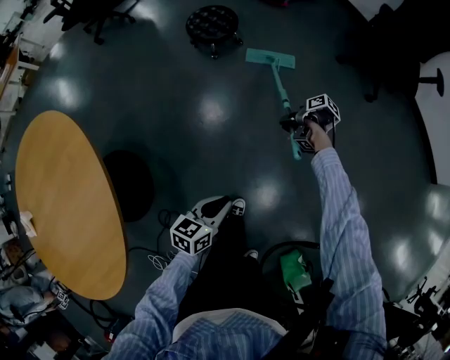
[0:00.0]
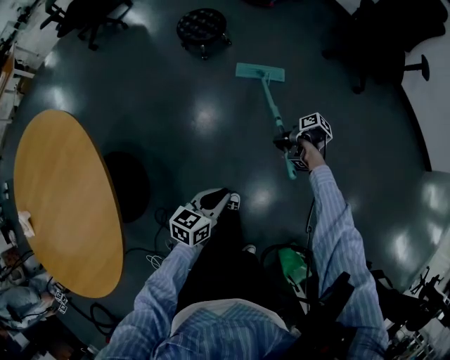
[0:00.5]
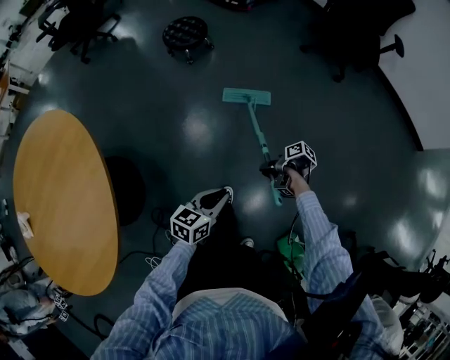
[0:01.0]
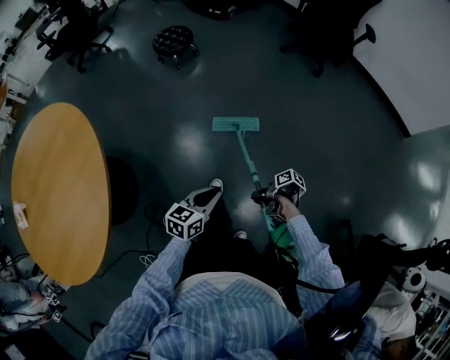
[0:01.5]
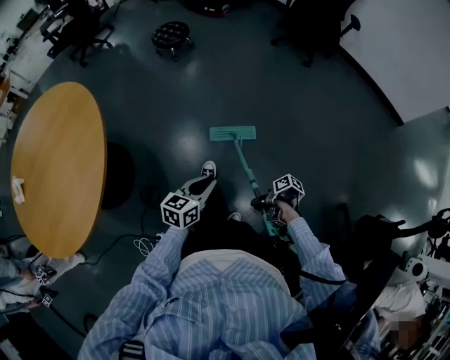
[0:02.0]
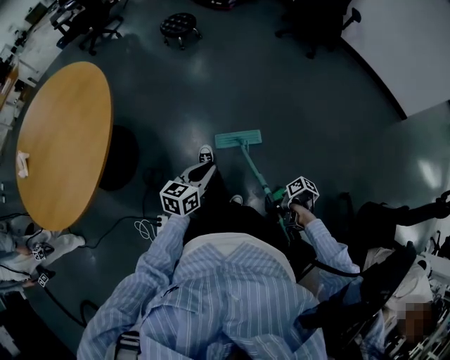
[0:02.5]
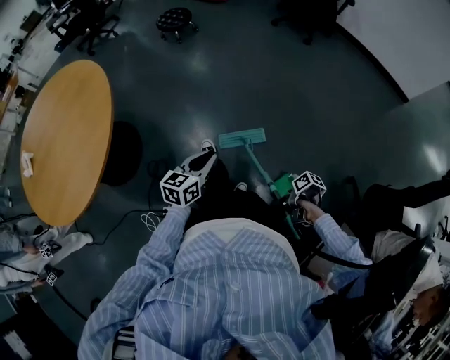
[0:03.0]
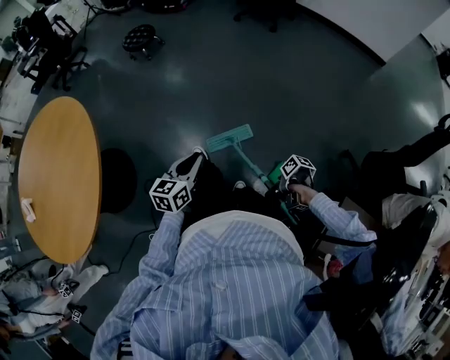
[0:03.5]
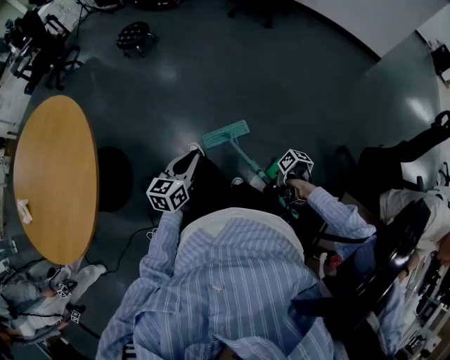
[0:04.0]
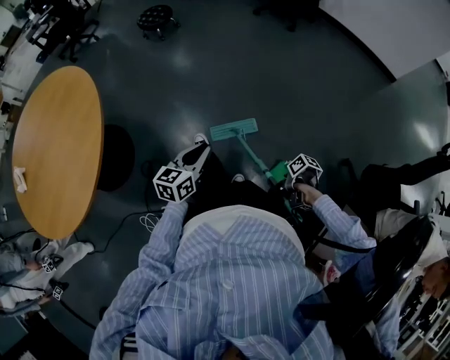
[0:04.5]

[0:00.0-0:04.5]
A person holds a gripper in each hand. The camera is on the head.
0:00.0 to 0:02.0: The left gripper ends up some 40 cm from where it was.
0:02.0 to 0:04.5: The left gripper shifts by approximately 10 cm.

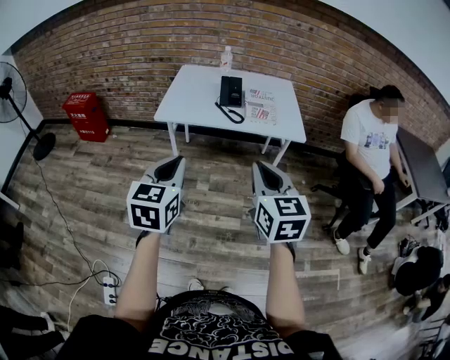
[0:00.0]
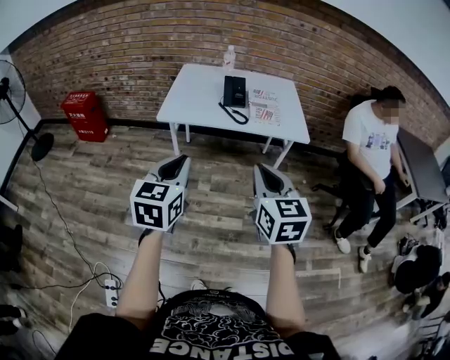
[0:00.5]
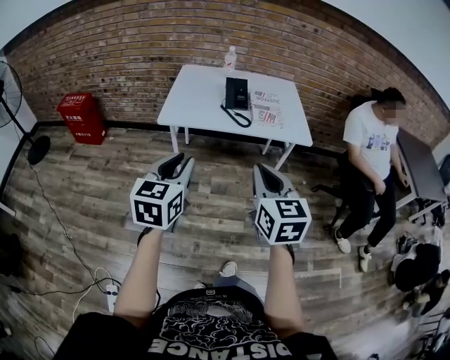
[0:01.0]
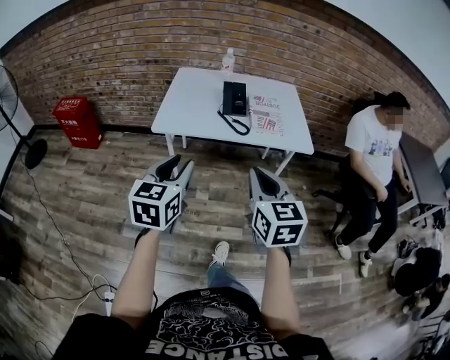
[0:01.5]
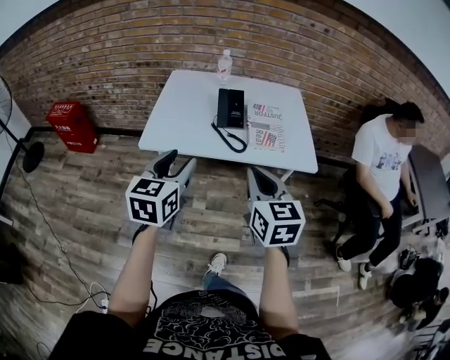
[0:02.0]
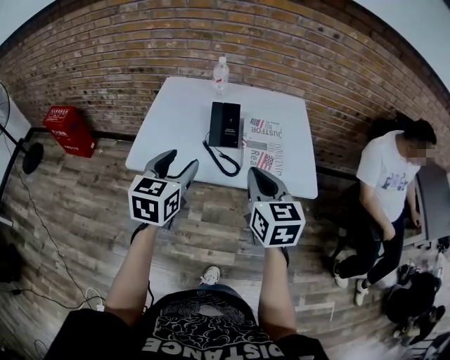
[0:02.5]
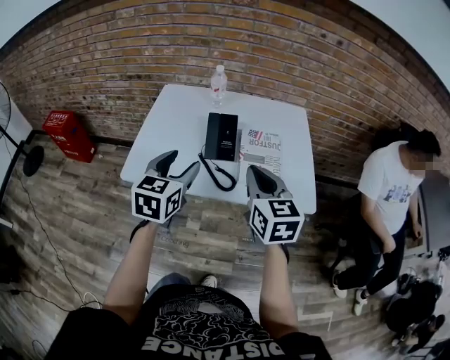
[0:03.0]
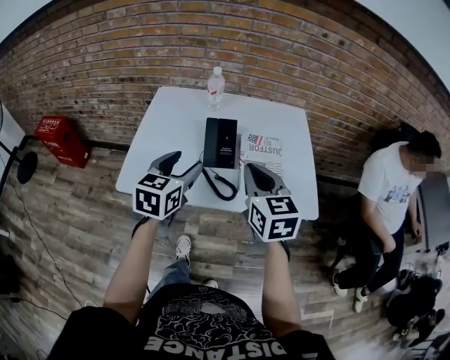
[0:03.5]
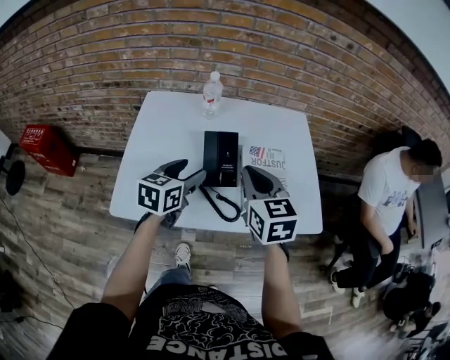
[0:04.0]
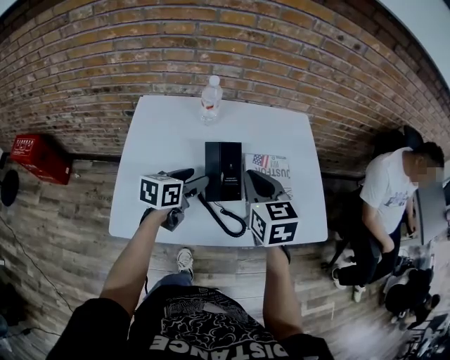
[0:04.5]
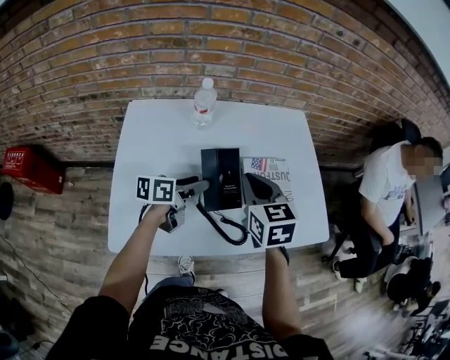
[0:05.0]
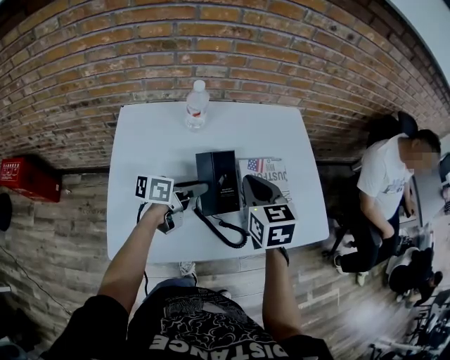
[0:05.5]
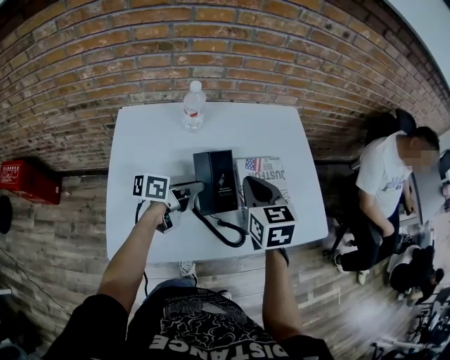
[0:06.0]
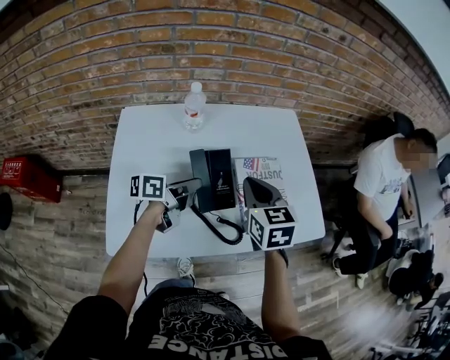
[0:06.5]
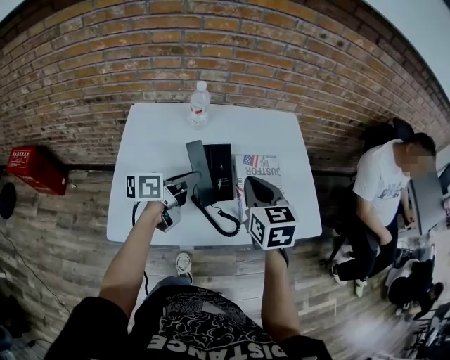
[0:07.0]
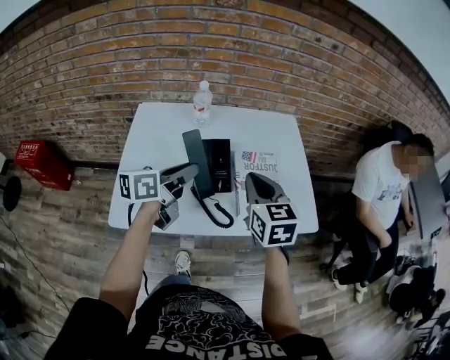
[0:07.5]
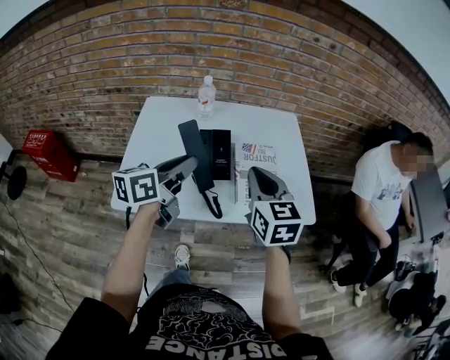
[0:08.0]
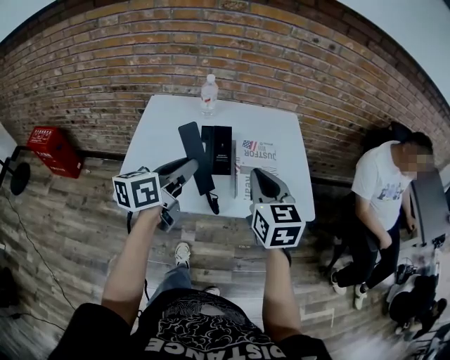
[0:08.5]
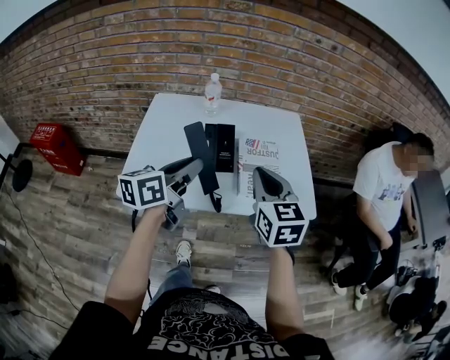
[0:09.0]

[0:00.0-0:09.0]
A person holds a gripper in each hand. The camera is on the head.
0:00.0 to 0:02.0: Both grippers travel together forward, some 25 cm. The left gripper opens its fingers.
0:02.0 to 0:04.5: The left gripper moves forward and downward, approximately 40 cm, and turns by some 40 degrees, while the right gripper is displaced forward by approximately 35 cm.
0:04.5 to 0:07.0: The left gripper moves upward, about 5 cm, changes its angle by about 30 degrees, and closes its fingers.
0:07.0 to 0:09.0: The right gripper shifts roughly 15 cm backward, upward and to the right. The left gripper travels backward and upward by some 20 cm, and turns by about 30 degrees.

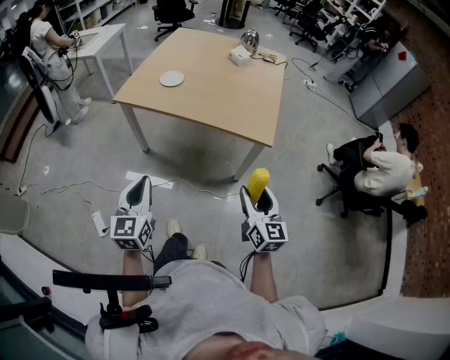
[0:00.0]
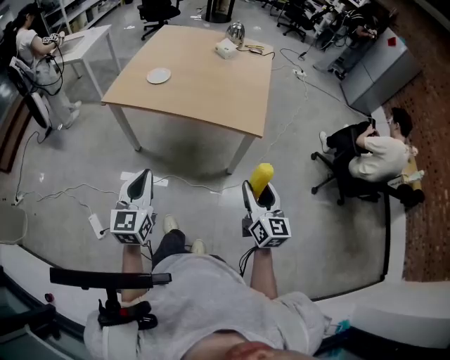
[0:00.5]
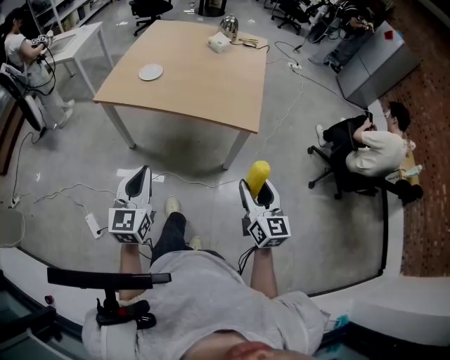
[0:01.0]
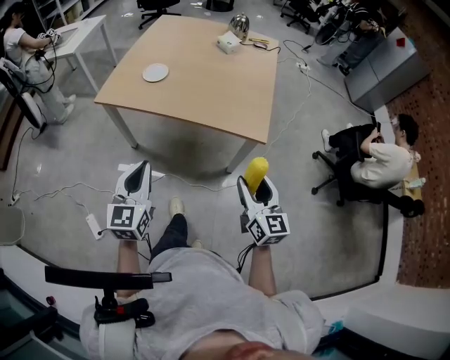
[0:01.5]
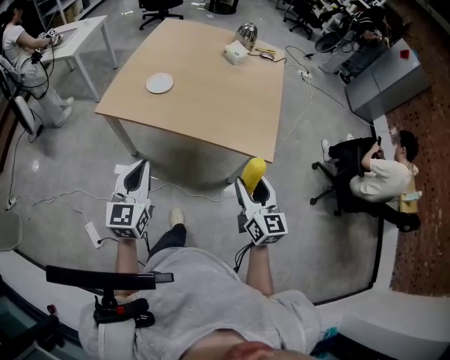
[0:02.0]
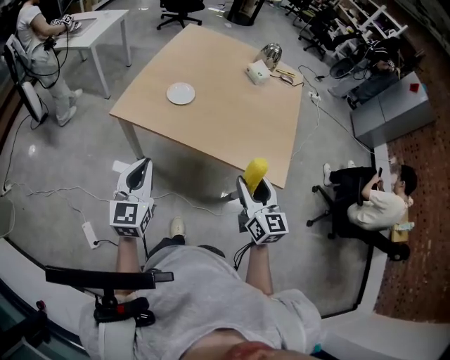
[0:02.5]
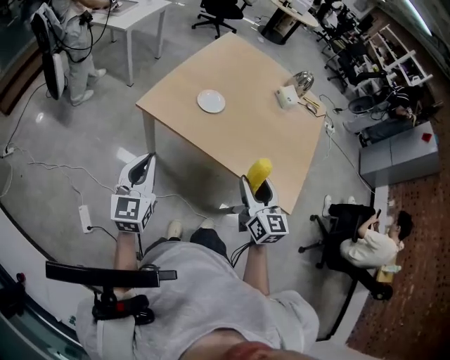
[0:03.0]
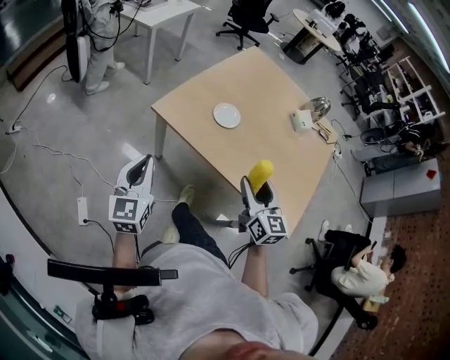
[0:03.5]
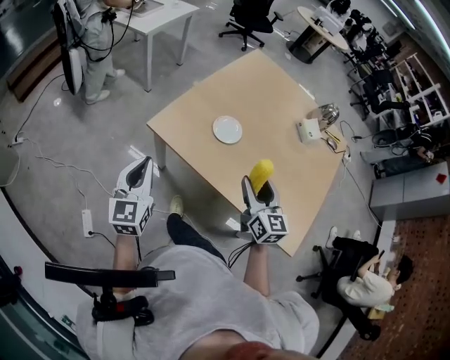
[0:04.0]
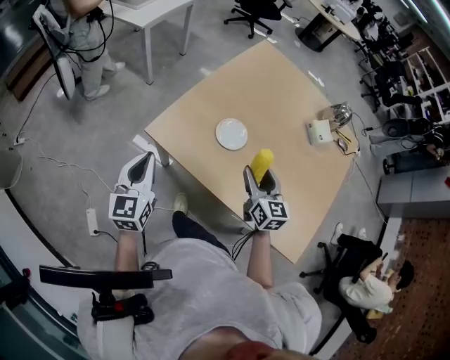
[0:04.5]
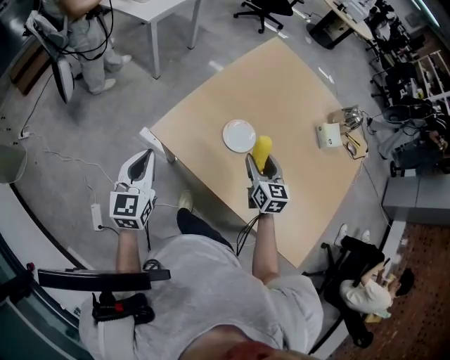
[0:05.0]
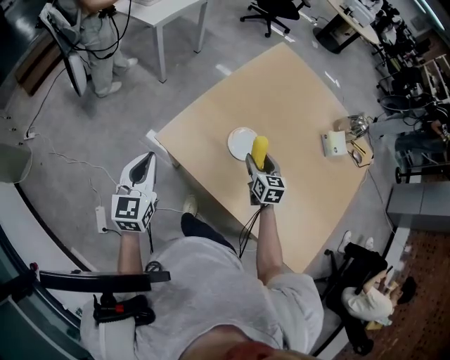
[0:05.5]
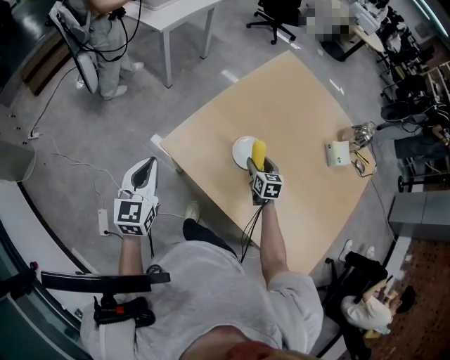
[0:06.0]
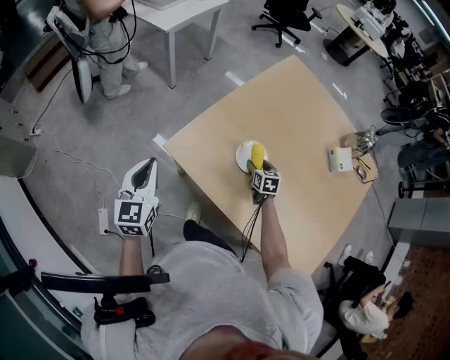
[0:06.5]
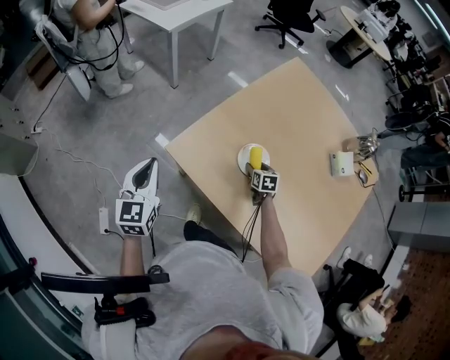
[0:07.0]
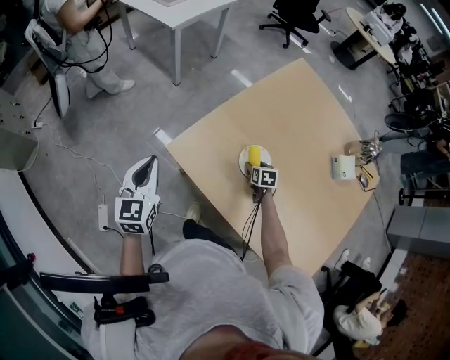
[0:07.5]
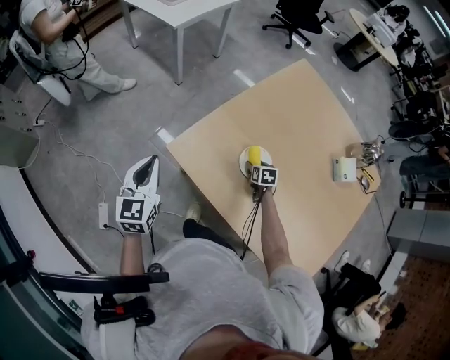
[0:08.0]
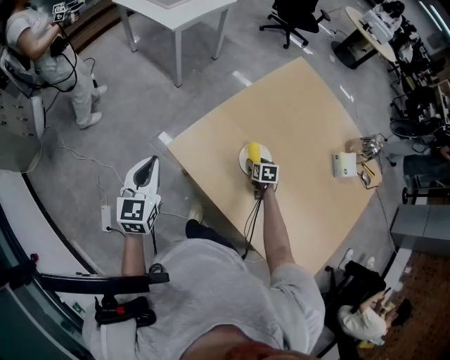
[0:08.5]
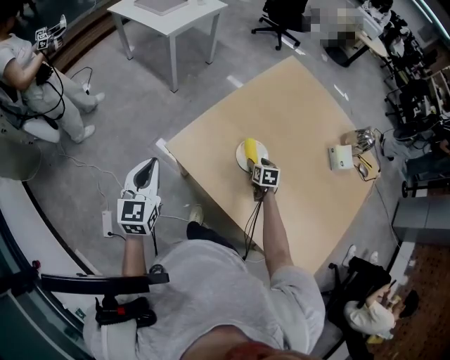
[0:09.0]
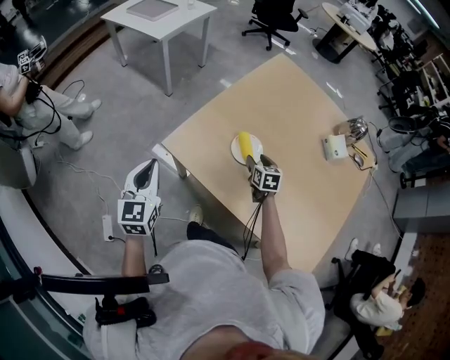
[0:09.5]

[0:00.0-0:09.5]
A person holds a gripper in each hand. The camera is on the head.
0:00.0 to 0:02.0: The grippers both shift forward by roughly 20 cm.
0:02.0 to 0:04.0: The grippers both shift forward and to the left by approximately 35 cm. The right gripper swivels about 20 degrees, while the left gripper rotates some 20 degrees.
0:04.0 to 0:05.5: The right gripper goes approximately 30 cm forward and downward, and changes its angle by approximately 20 degrees. The left gripper is displaced forward by roughly 15 cm.
0:05.5 to 0:07.5: The right gripper travels downward and forward by roughly 15 cm, and rotates some 30 degrees.
0:07.5 to 0:09.5: The right gripper moves upward and backward, roughly 15 cm, while the left gripper shifts approximately 5 cm backward.

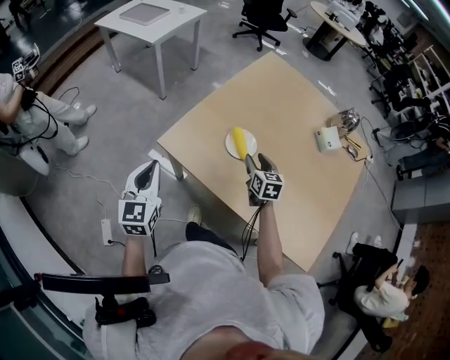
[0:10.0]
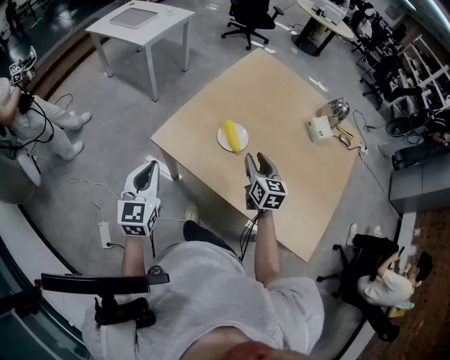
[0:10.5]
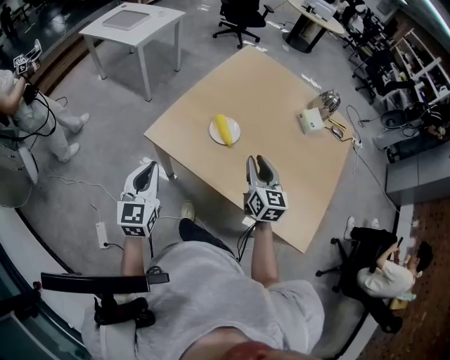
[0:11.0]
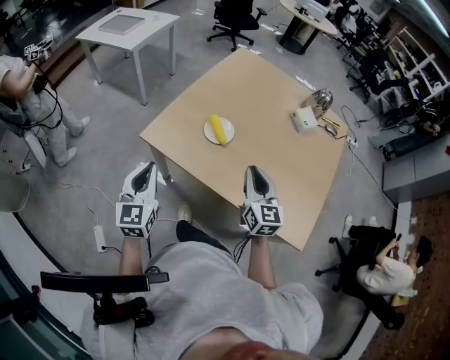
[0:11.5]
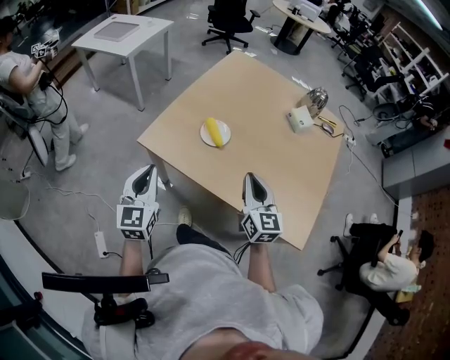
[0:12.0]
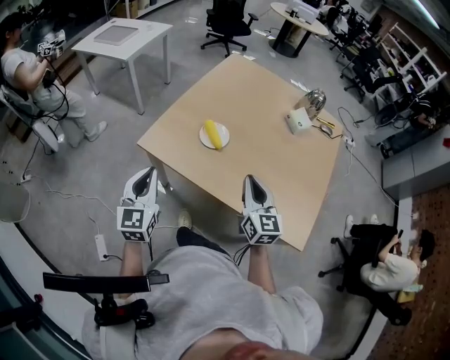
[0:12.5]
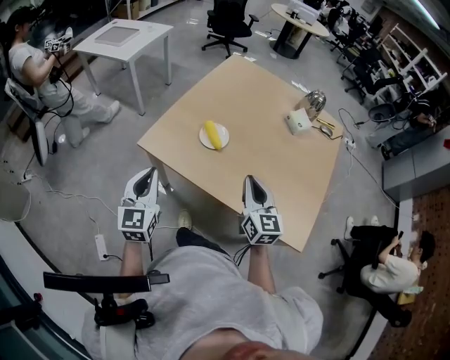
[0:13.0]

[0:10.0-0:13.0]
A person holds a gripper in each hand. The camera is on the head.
0:10.0 to 0:11.5: The right gripper goes roughly 25 cm backward and upward, rotates roughly 20 degrees, and closes up, while the left gripper moves backward and to the right, some 10 cm.
0:11.5 to 0:13.0: The grippers stay close to where they were, moving slightly.
